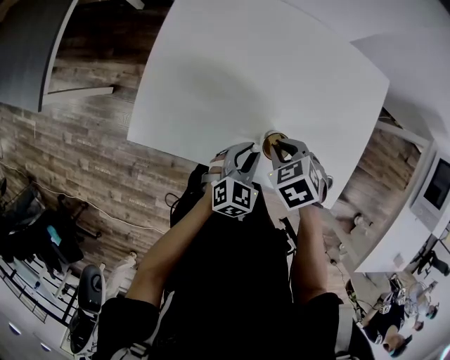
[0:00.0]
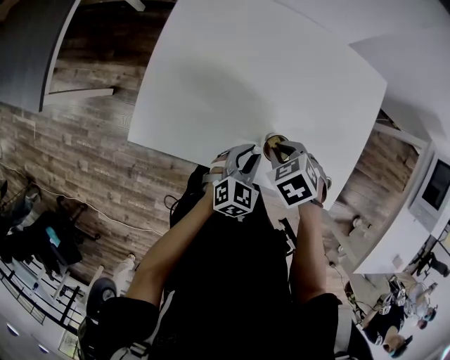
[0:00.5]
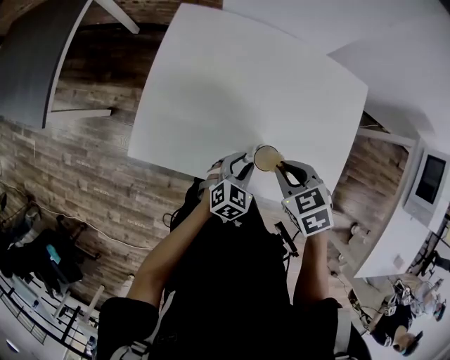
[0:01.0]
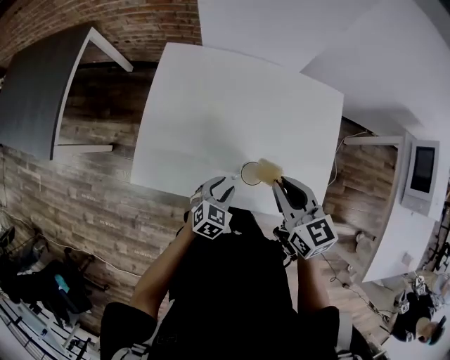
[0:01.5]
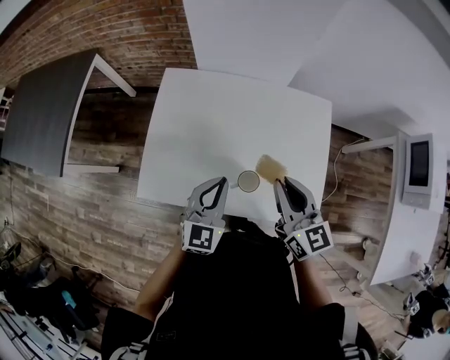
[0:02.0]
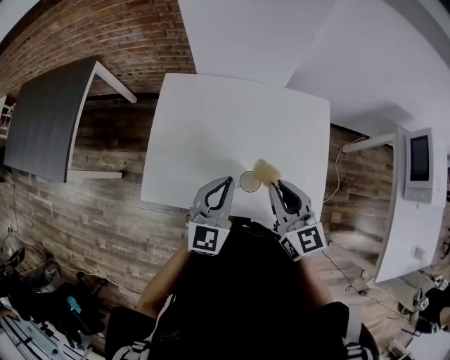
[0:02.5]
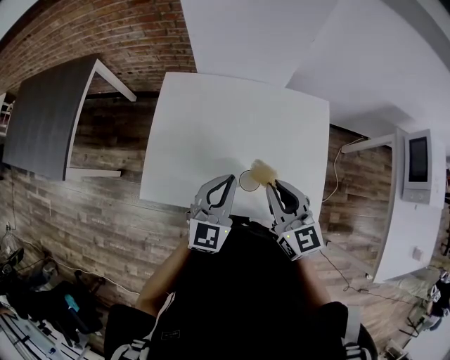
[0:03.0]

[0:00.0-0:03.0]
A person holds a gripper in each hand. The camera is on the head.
0:00.0 to 0:01.5: The right gripper travels upward by approximately 15 cm, and angles its fingers upward, by approximately 50 degrees.
0:01.5 to 0:03.0: The left gripper moves upward, roughly 20 cm, tilts its fingers about 30 degrees upward, and closes up.

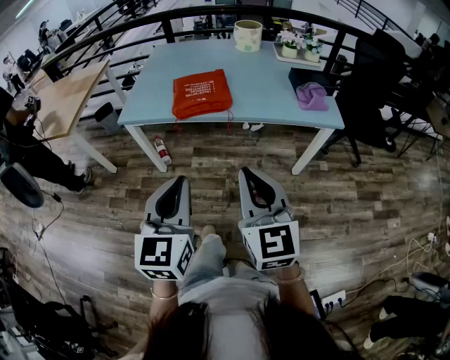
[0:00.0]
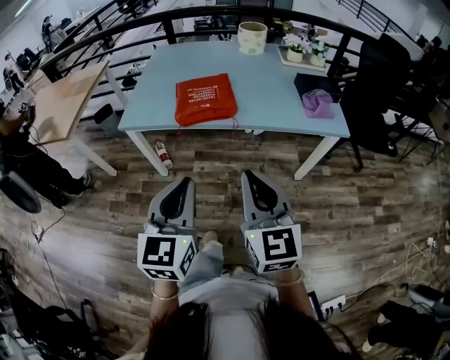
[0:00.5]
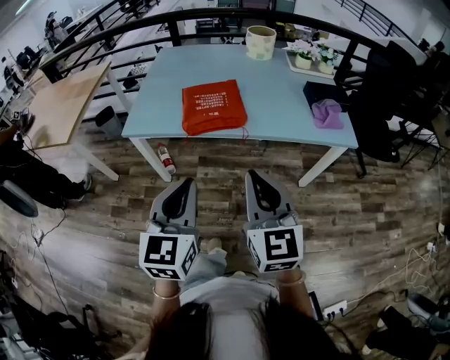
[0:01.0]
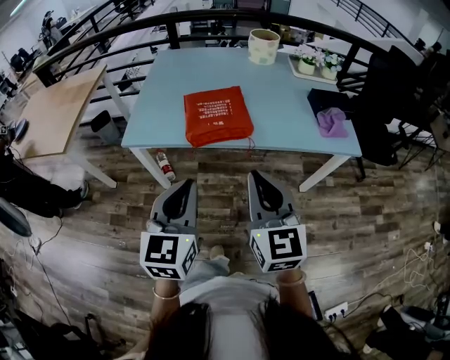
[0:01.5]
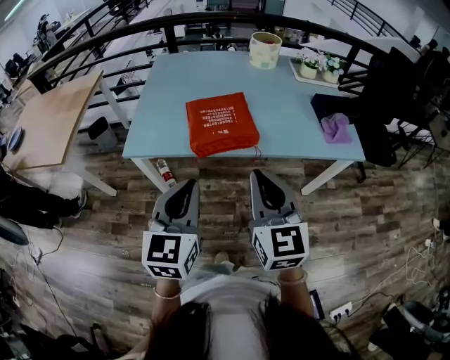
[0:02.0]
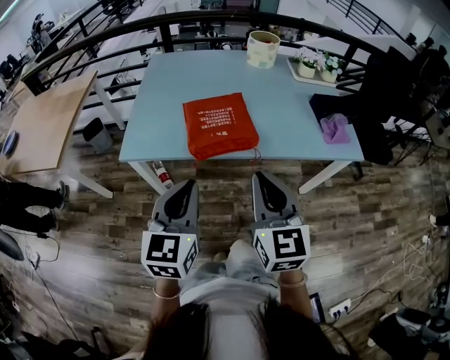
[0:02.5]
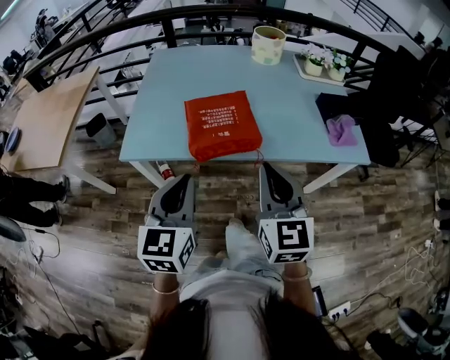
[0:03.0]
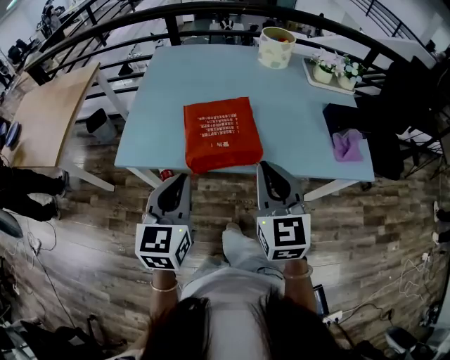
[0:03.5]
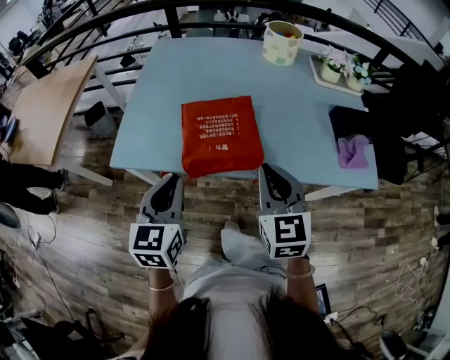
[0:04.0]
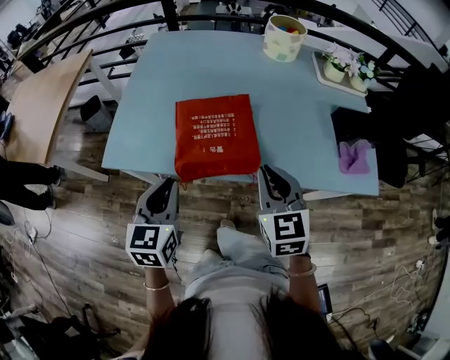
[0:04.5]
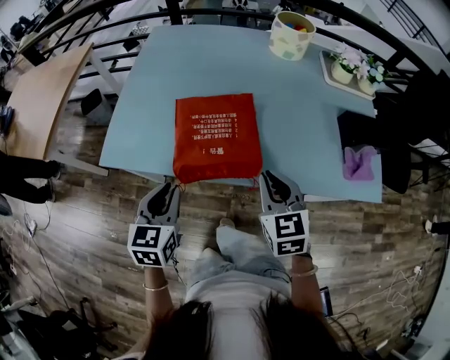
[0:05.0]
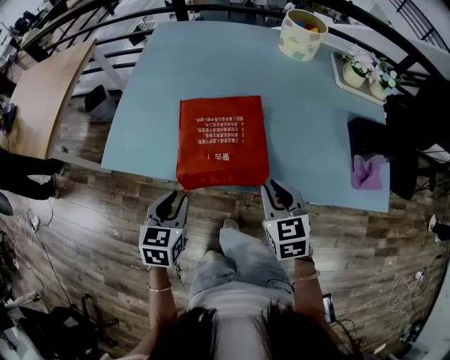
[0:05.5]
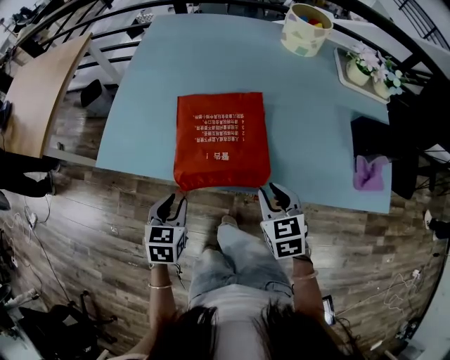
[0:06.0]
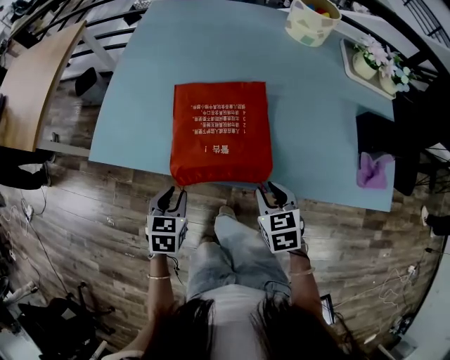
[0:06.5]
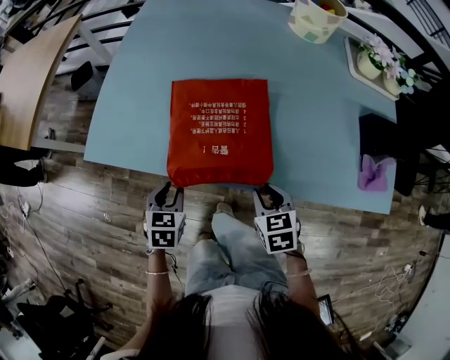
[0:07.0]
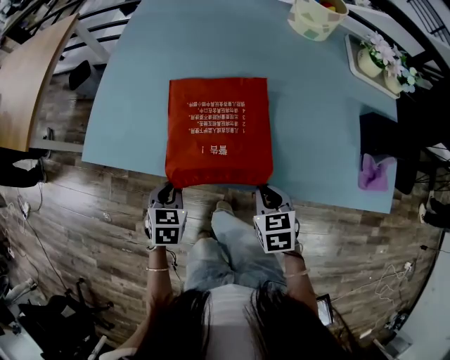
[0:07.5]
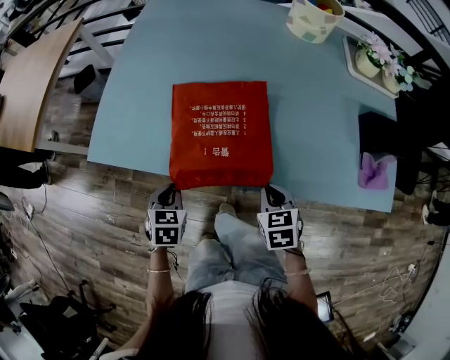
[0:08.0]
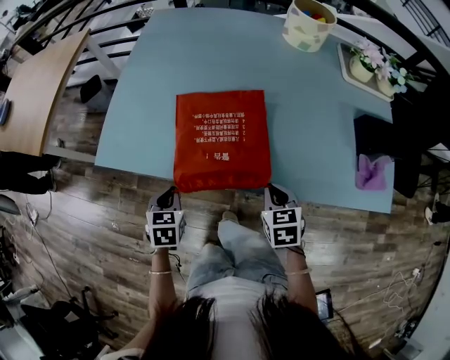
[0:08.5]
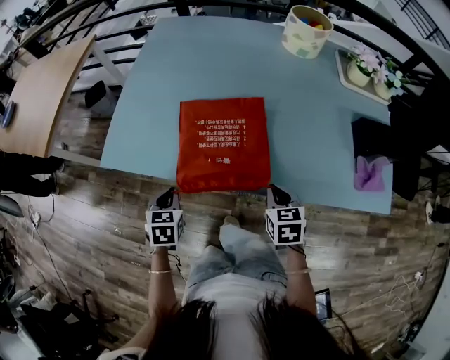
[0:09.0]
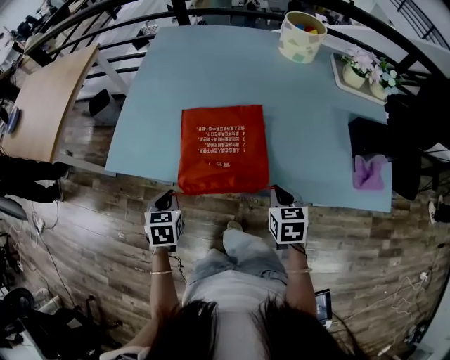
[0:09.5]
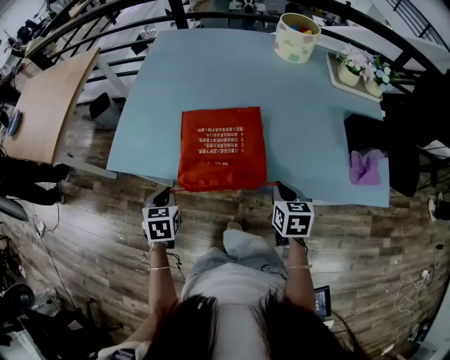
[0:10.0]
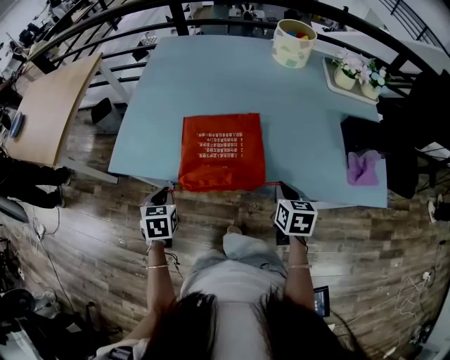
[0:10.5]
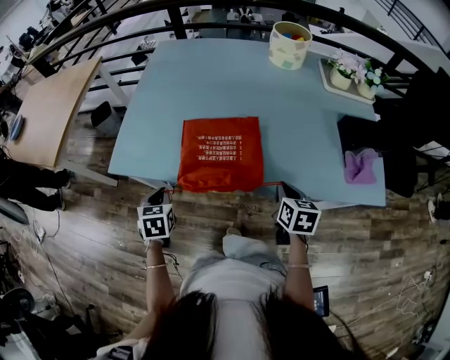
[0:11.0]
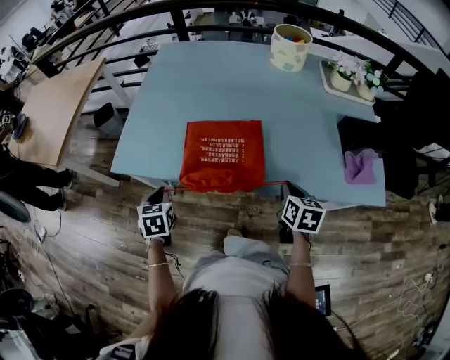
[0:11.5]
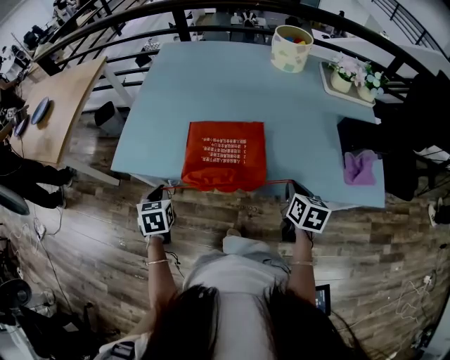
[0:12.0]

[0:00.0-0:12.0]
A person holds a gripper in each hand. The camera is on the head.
0:00.0 to 0:02.0: Both grippers travel together forward and to the left, some 25 cm.
0:02.0 to 0:04.0: The right gripper travels forward by approximately 20 cm, while the left gripper shifts about 20 cm forward and downward.
0:04.0 to 0:06.0: Both grippers travel together downward, roughly 20 cm. The left gripper rotates some 30 degrees; the right gripper changes its angle by approximately 30 degrees.
0:06.0 to 0:08.0: Both grippers move downward, some 5 cm. The left gripper closes.
0:08.0 to 0:10.0: Both grippers move upward, some 5 cm.
0:10.0 to 0:12.0: The right gripper travels to the right by roughly 5 cm.

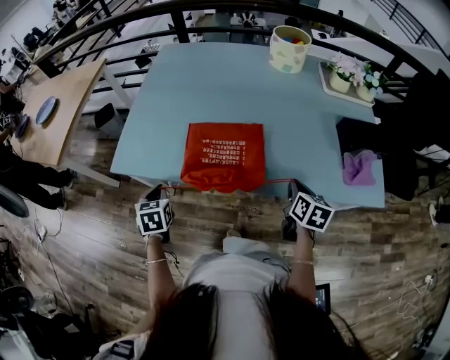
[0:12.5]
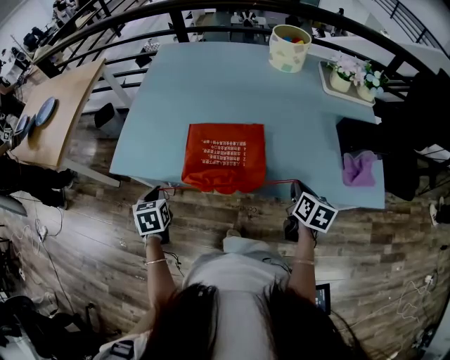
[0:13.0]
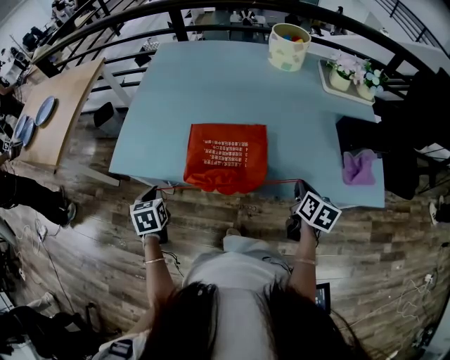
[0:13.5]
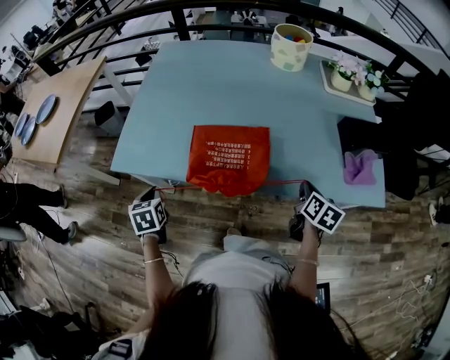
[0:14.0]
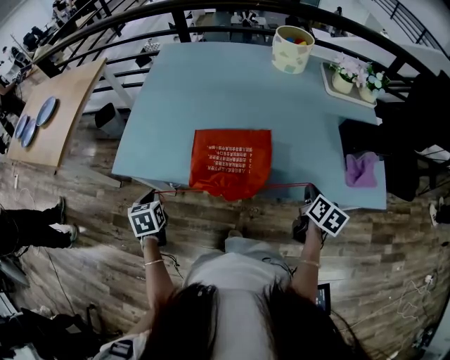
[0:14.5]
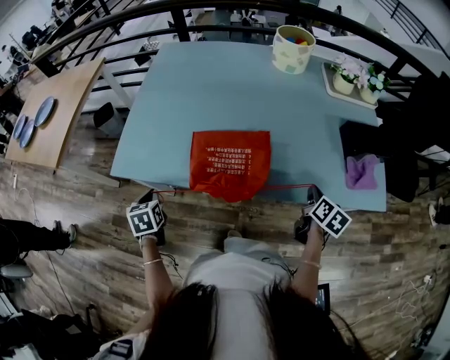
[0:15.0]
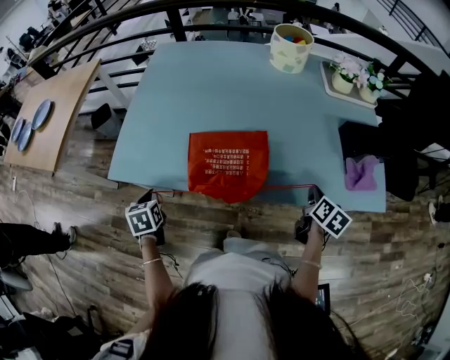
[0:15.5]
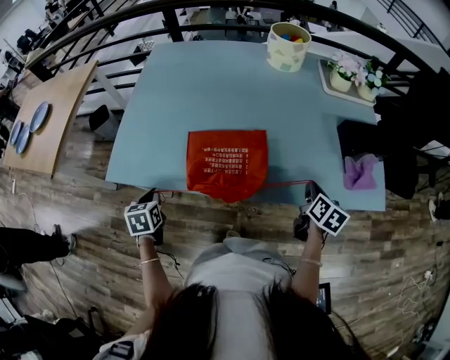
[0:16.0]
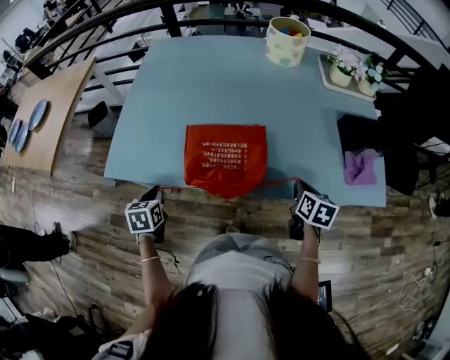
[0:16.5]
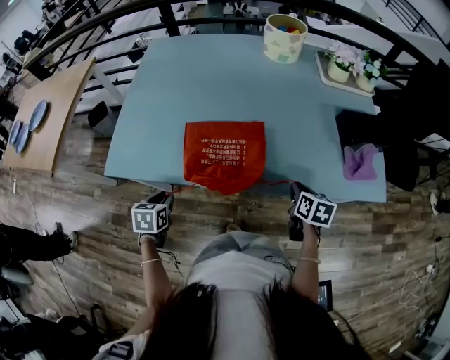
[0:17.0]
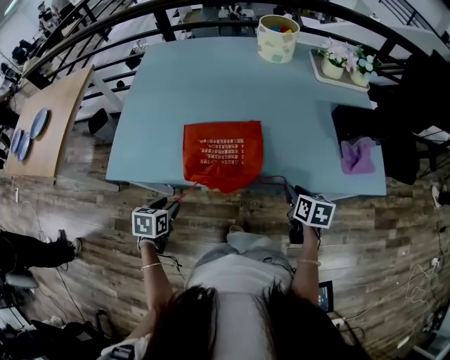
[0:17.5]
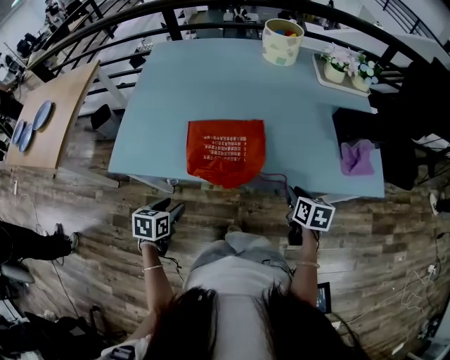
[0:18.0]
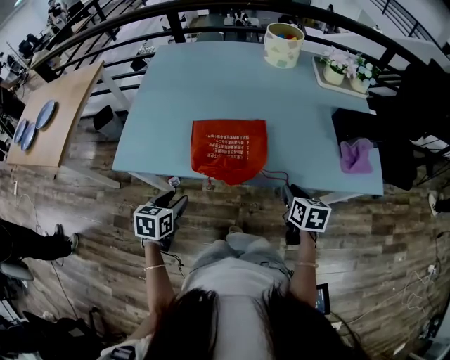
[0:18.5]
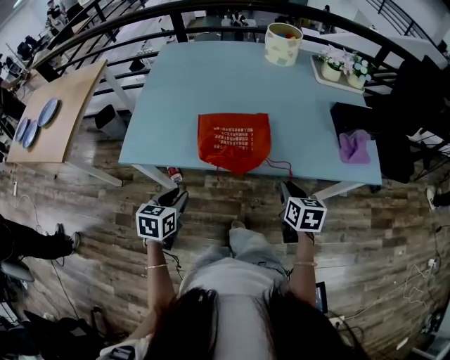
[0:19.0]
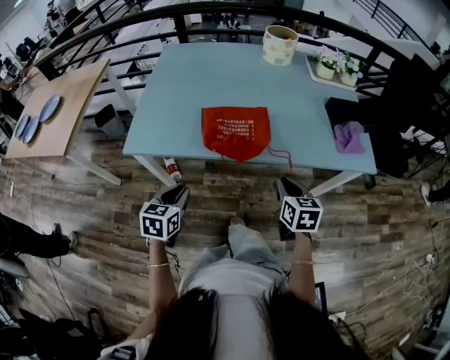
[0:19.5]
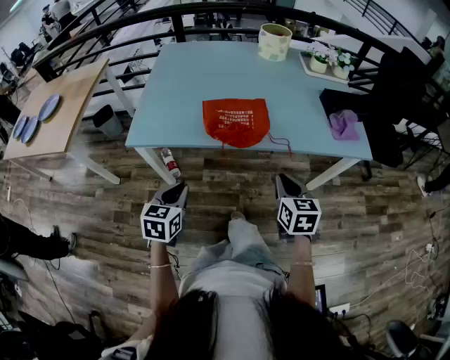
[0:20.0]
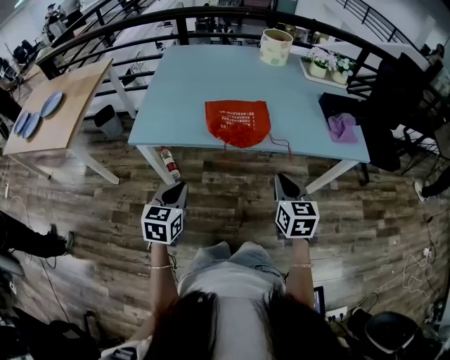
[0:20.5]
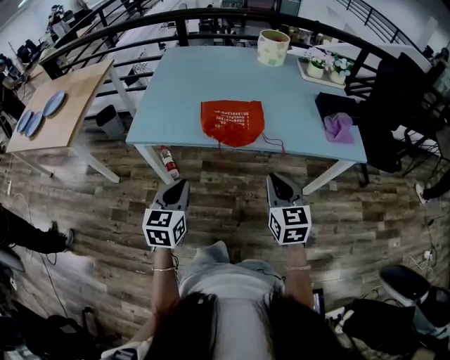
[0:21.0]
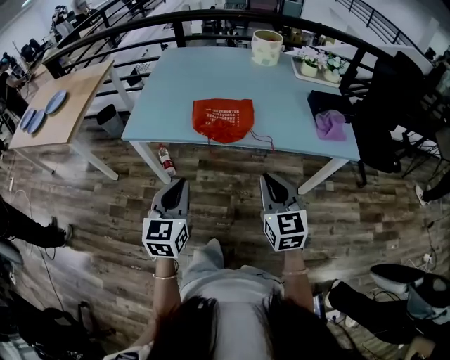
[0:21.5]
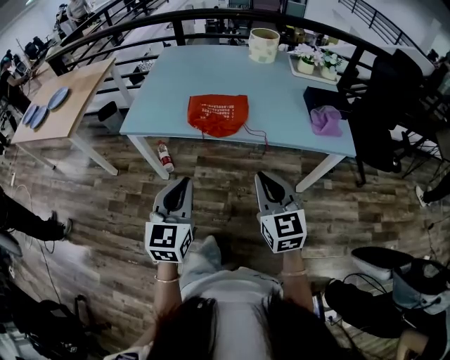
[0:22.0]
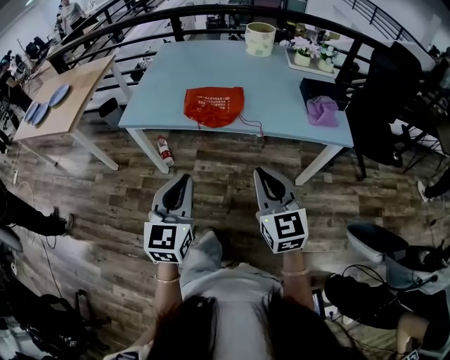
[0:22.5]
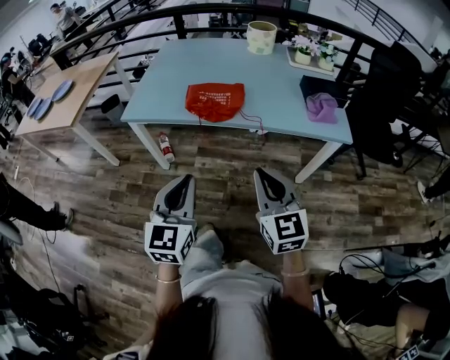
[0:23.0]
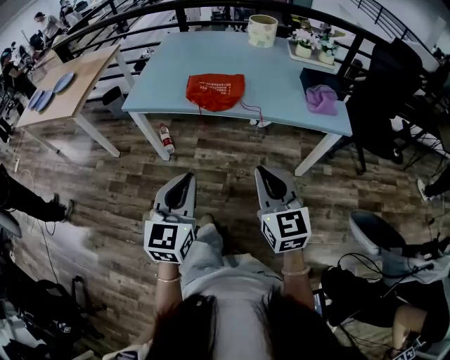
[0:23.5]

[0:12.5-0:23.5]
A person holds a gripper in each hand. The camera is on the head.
0:12.5 to 0:14.5: The right gripper goes roughly 5 cm to the right.
0:14.5 to 0:16.0: The grippers make only small movements.
0:16.0 to 0:18.0: The right gripper is displaced backward and to the left by about 10 cm; the left gripper travels to the right and backward by roughly 10 cm, rotates roughly 20 degrees, and opens its fingers.
0:18.0 to 0:20.0: The right gripper is displaced backward, upward and to the left by about 25 cm, and changes its angle by approximately 20 degrees. Meanwhile the left gripper is displaced backward and upward by approximately 15 cm, rotates roughly 20 degrees, and closes its fingers.
0:20.0 to 0:21.5: The left gripper travels upward, to the right and backward by some 15 cm, and rotates some 20 degrees. The right gripper shifts some 10 cm upward and backward, and swivels about 20 degrees.
0:21.5 to 0:23.5: The right gripper travels backward by some 15 cm. The left gripper heads backward and to the right, covering roughly 15 cm.
